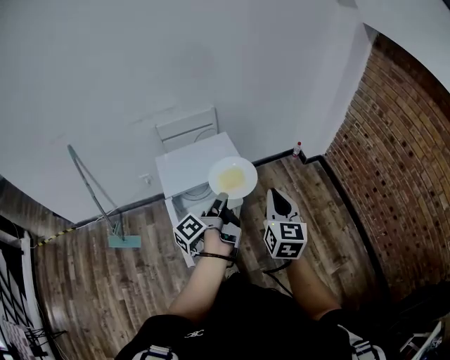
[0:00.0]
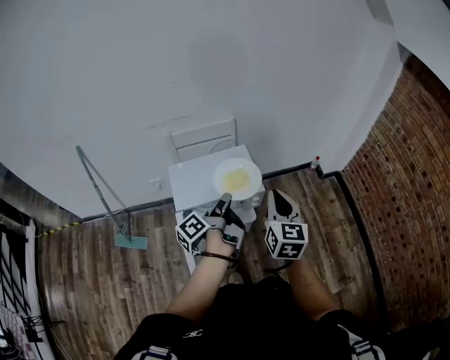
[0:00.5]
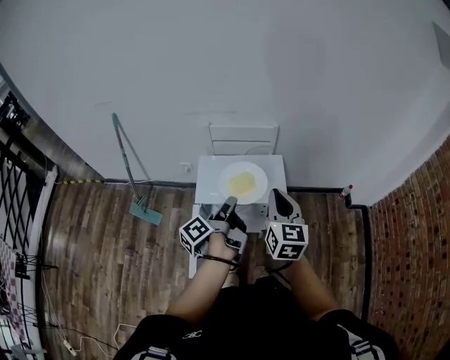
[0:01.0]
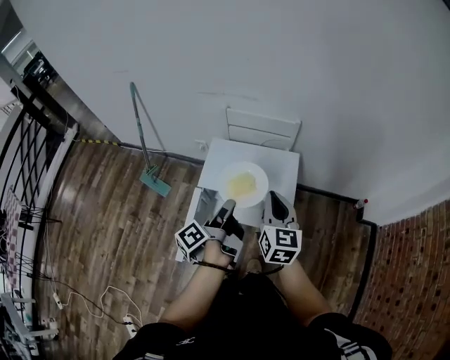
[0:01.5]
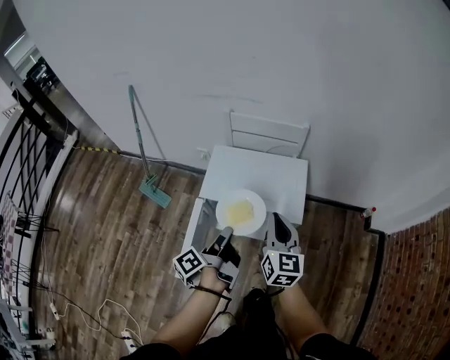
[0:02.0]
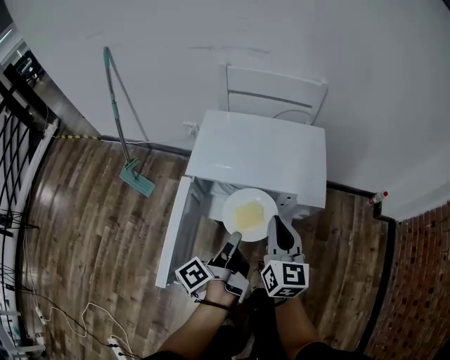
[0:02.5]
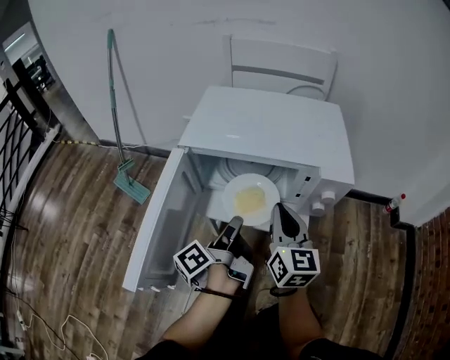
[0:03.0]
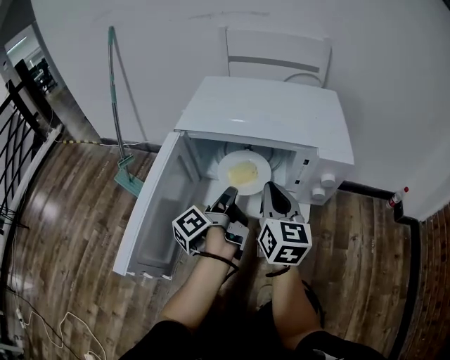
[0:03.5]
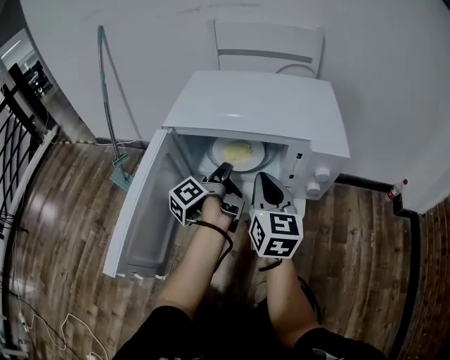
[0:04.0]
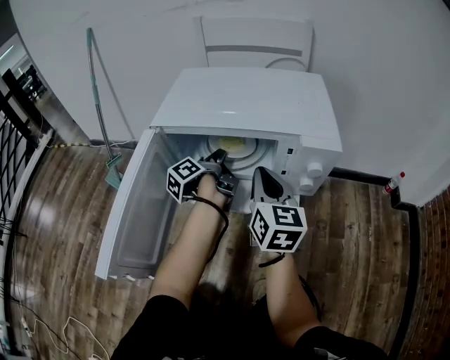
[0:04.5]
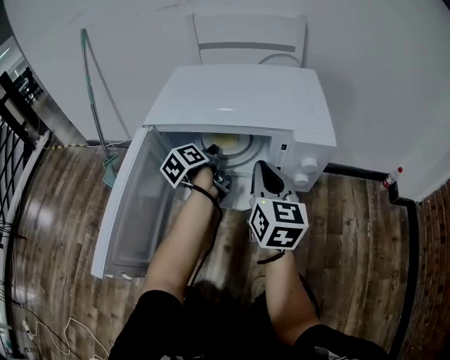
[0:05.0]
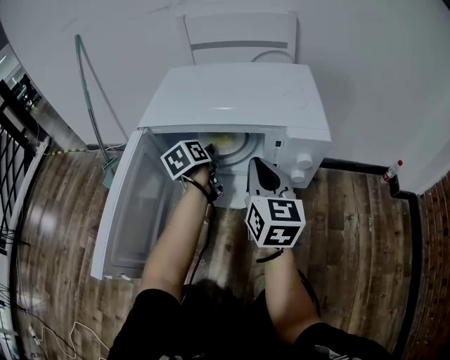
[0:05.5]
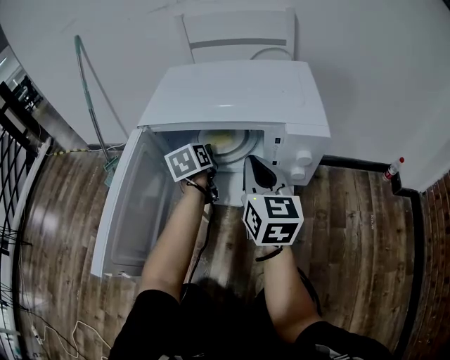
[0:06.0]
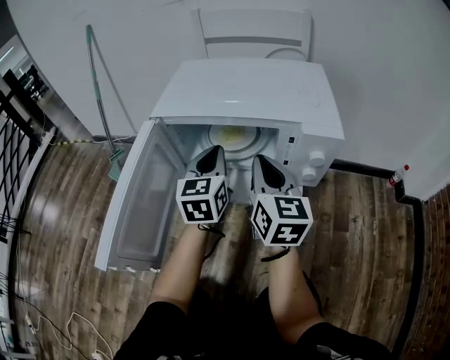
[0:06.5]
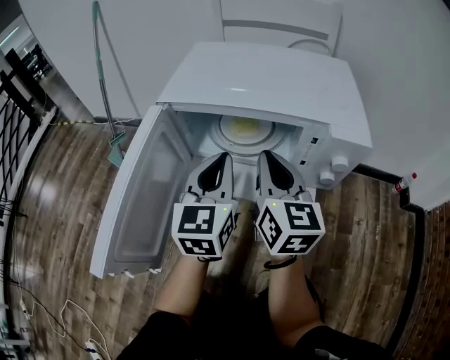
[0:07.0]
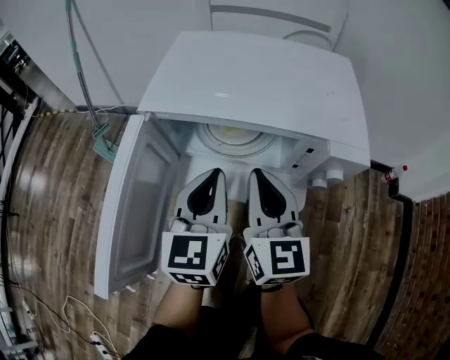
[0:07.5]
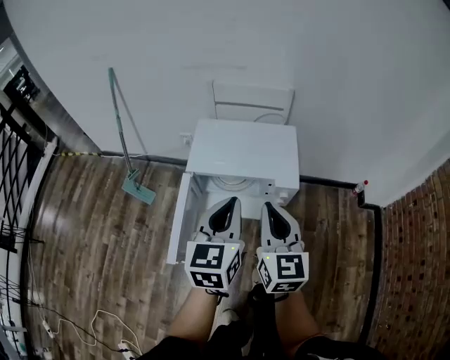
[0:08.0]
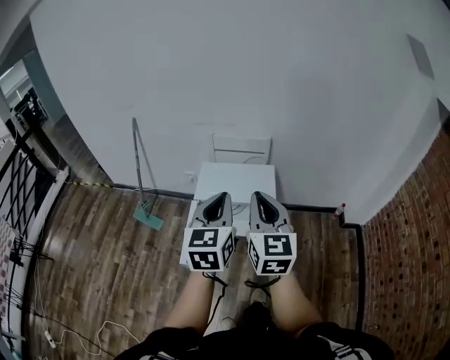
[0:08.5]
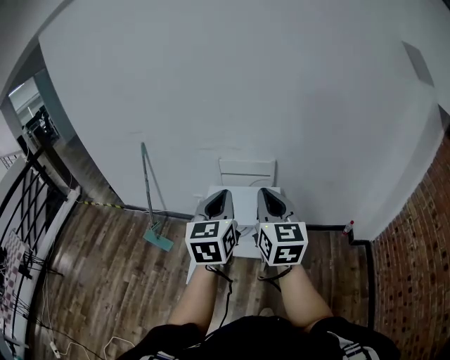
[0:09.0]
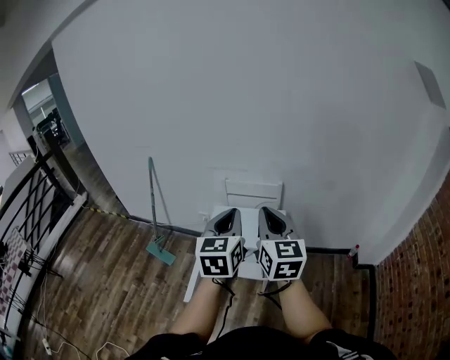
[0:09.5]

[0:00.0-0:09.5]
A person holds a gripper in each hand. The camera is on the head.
0:00.0 to 0:02.0: The right gripper moves some 25 cm, and rotates some 30 degrees. Meanwhile the left gripper goes some 10 cm downward, and swivels roughly 30 degrees.
0:02.0 to 0:04.0: The left gripper goes some 35 cm downward and forward; the right gripper moves downward, about 30 cm.
0:04.0 to 0:05.5: The left gripper travels forward by roughly 5 cm, and twists about 40 degrees clockwise, seen from behind.
0:05.5 to 0:07.5: The right gripper moves to the left, roughly 5 cm, while the left gripper heads backward and upward, covering some 20 cm, and turns by approximately 40 degrees.
0:07.5 to 0:09.5: The grippers both shift upward by roughly 60 cm.

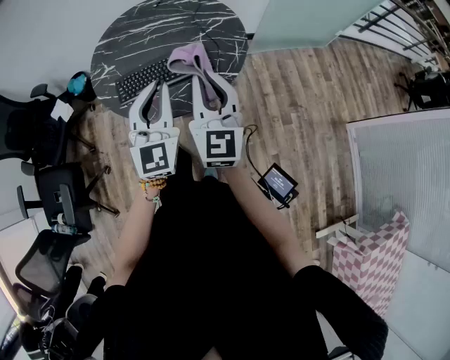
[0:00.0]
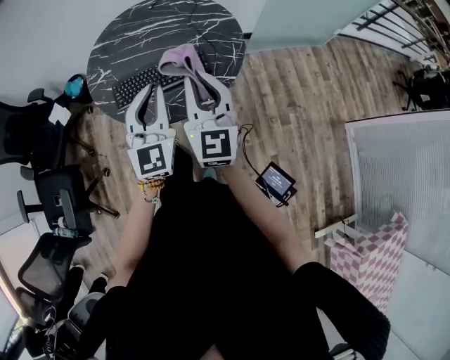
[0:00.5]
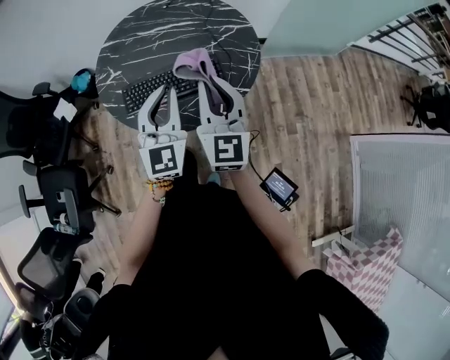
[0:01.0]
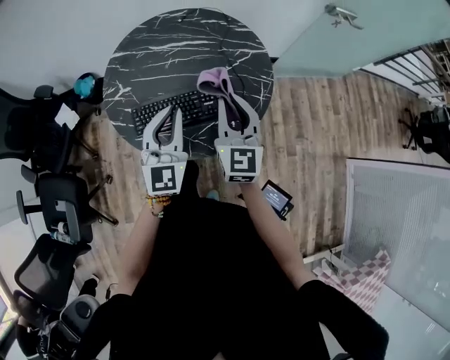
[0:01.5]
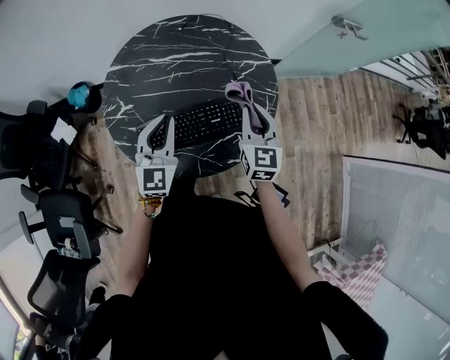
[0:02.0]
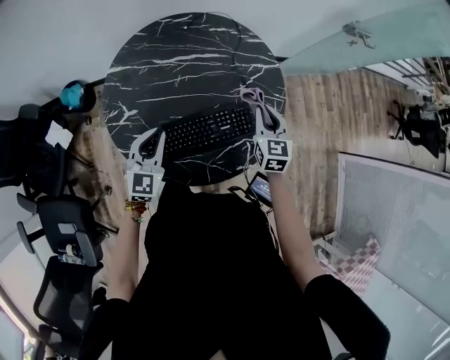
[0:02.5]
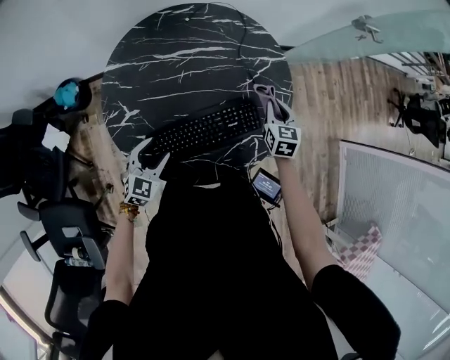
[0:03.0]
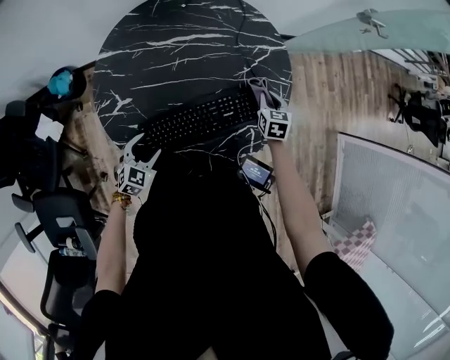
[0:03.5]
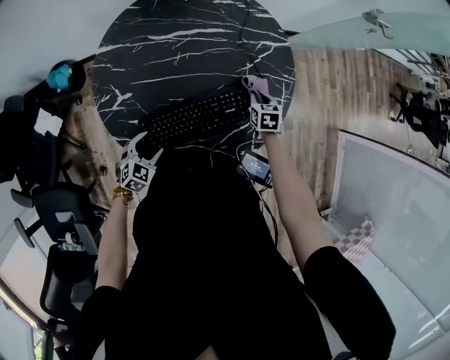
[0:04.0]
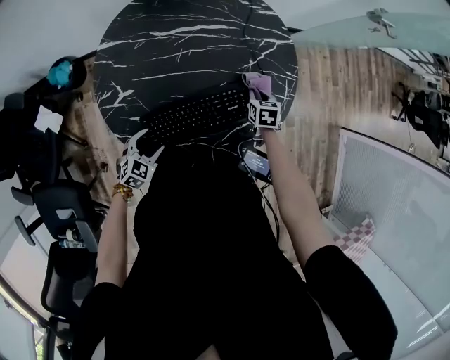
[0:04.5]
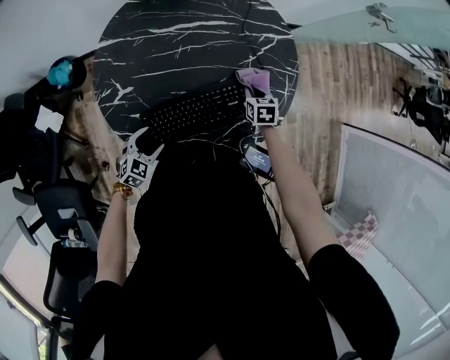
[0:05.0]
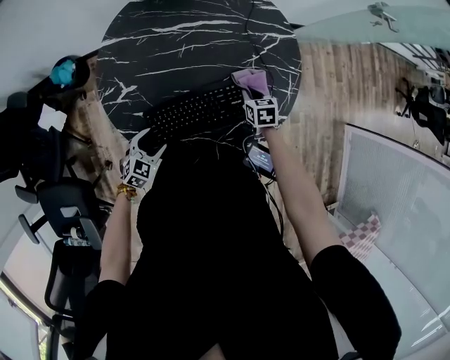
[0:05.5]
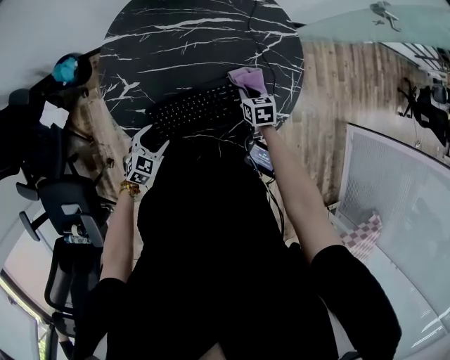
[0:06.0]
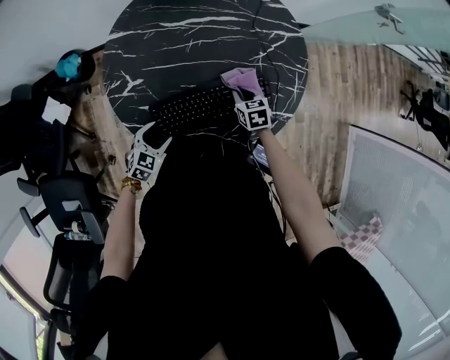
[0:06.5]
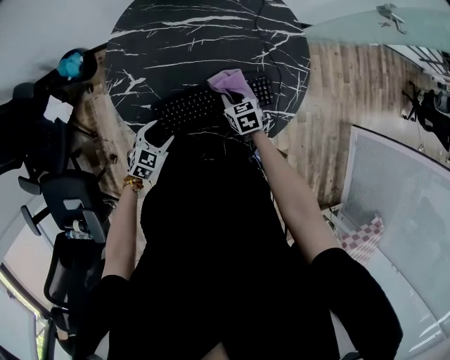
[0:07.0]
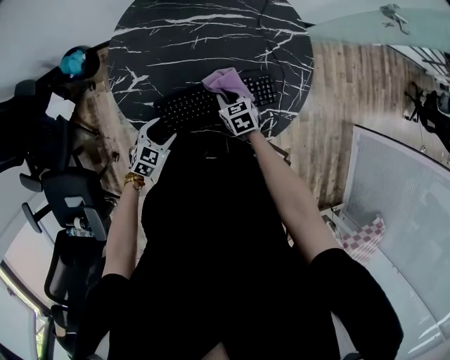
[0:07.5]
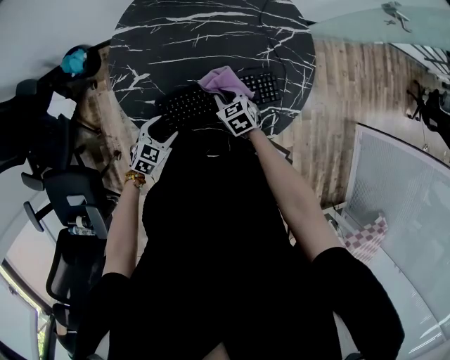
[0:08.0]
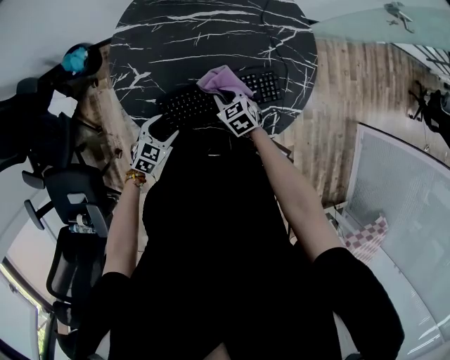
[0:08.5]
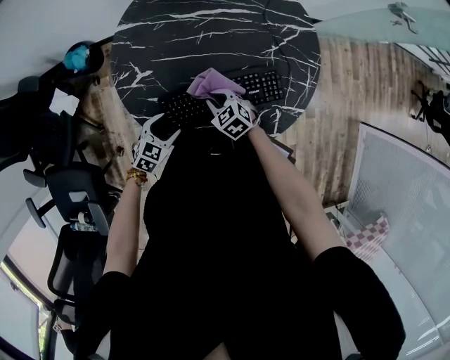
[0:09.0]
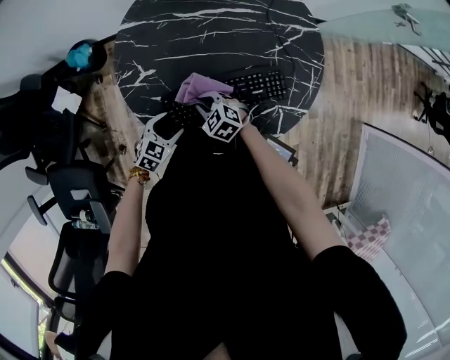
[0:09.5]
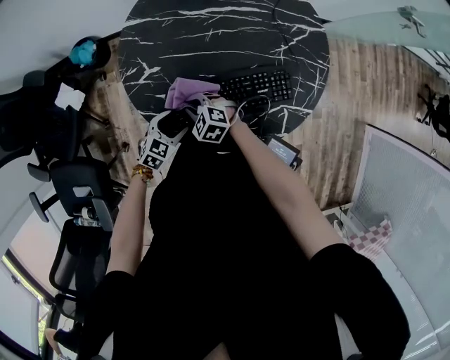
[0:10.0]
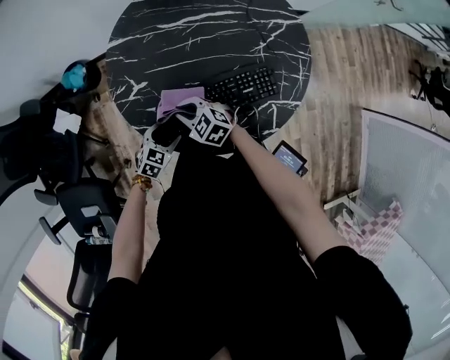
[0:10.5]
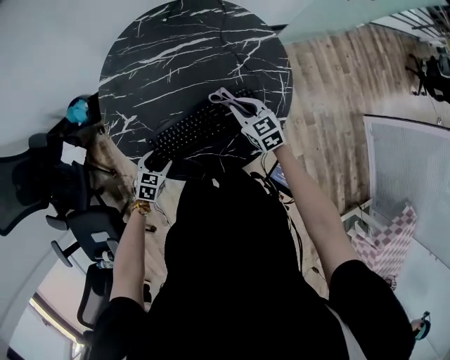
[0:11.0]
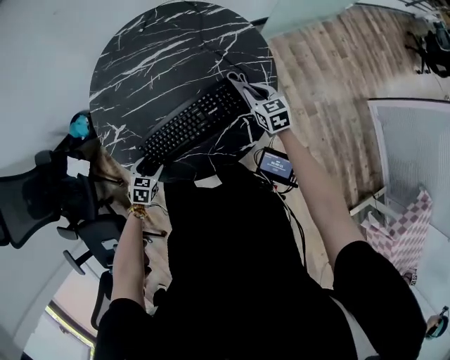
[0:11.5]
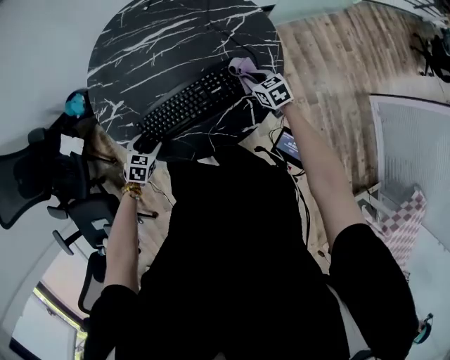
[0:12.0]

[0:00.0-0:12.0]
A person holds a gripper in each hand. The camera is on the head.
0:00.0 to 0:02.0: The right gripper goes about 25 cm forward and downward, while the left gripper shifts roughly 25 cm forward and to the left.
0:02.0 to 0:04.0: The two grippers go approximately 30 cm downward. The right gripper points its fingers roughly 40 degrees further downward, while the left gripper angles its fingers downward, by approximately 40 degrees, and opens.
0:04.0 to 0:06.0: The right gripper shifts some 10 cm to the left and backward.
0:06.0 to 0:08.0: The right gripper shifts about 15 cm to the left and backward, and changes its angle by approximately 20 degrees.
0:08.0 to 0:10.0: The right gripper moves to the left, roughly 15 cm, and rotates approximately 40 degrees.
0:10.0 to 0:12.0: The right gripper shifts roughly 35 cm to the right, and rotates around the line of its fingers by some 40 degrees, clockwise from behind.

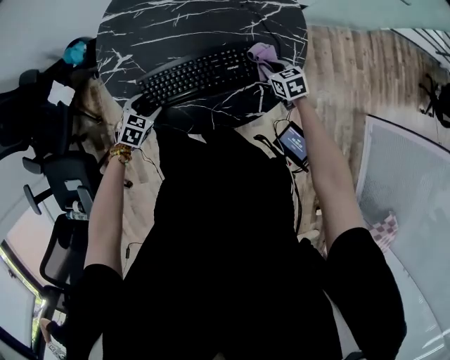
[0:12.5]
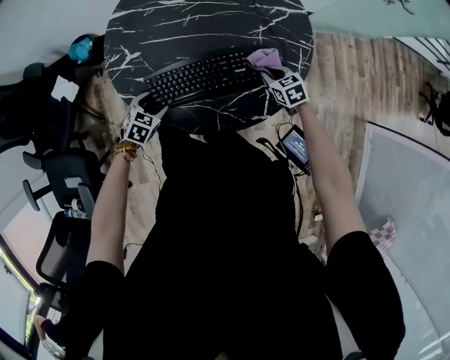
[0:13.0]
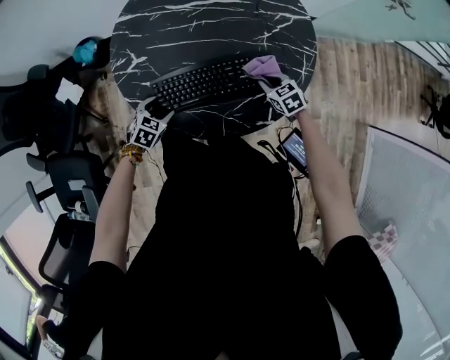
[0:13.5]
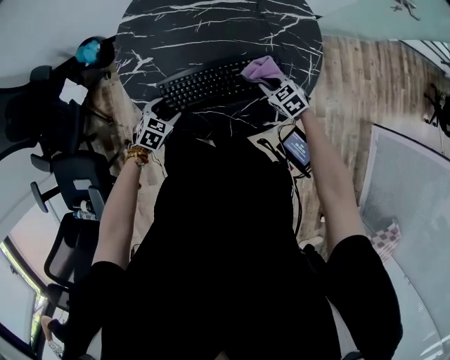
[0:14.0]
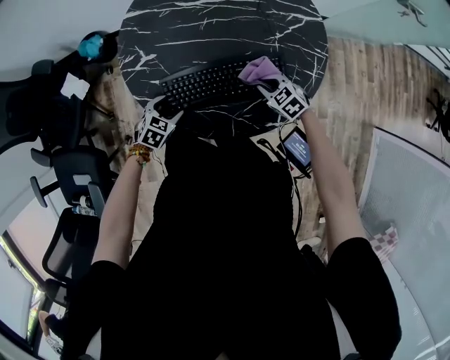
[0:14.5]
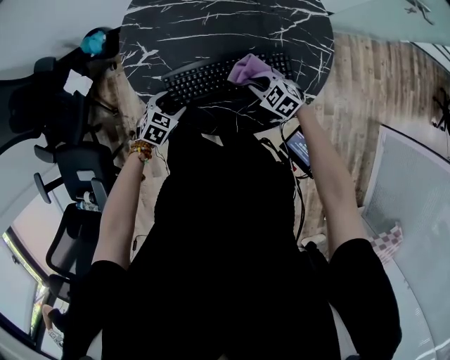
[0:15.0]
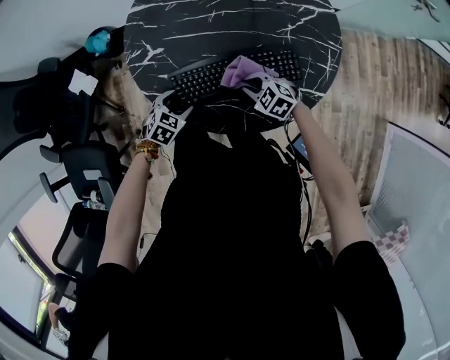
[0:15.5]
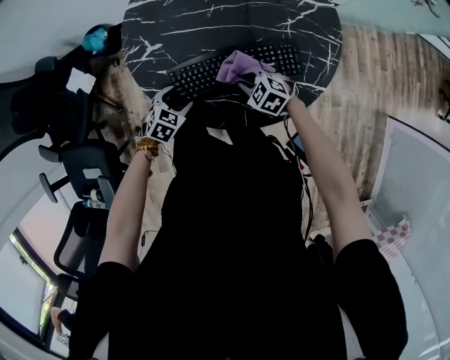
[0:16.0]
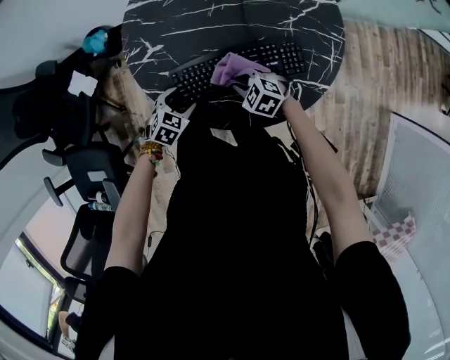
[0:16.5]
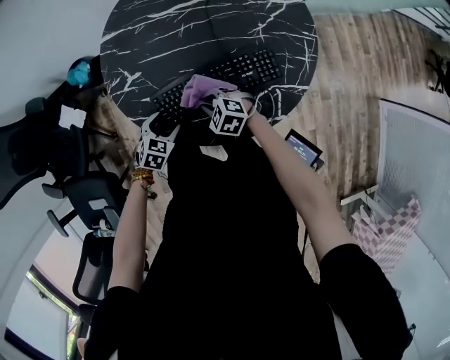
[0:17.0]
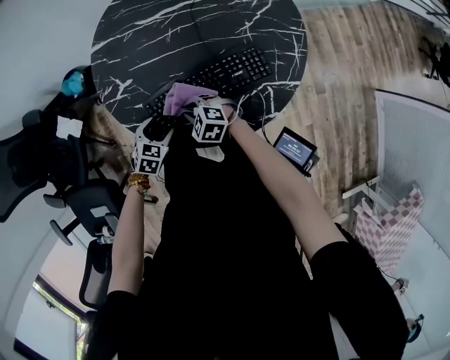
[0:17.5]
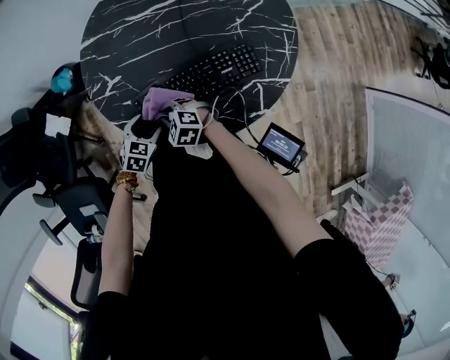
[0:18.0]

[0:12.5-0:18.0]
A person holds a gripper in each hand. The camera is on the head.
0:12.5 to 0:14.5: The right gripper goes about 10 cm to the left, and swivels some 30 degrees.
0:14.5 to 0:16.0: The right gripper is displaced to the left by some 10 cm.
0:16.0 to 0:18.0: The right gripper moves to the left, about 15 cm.
